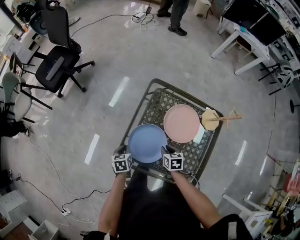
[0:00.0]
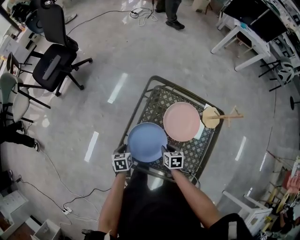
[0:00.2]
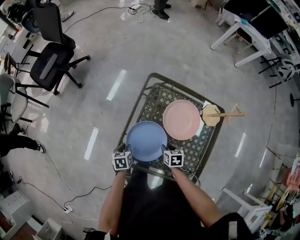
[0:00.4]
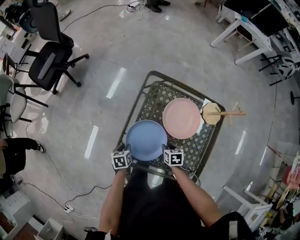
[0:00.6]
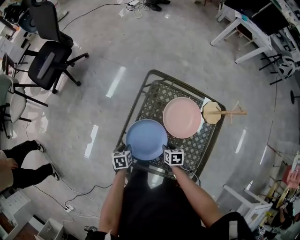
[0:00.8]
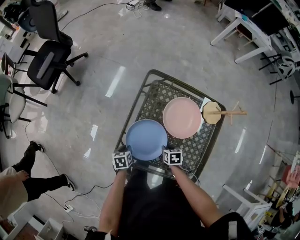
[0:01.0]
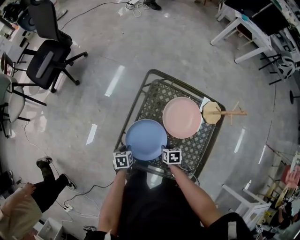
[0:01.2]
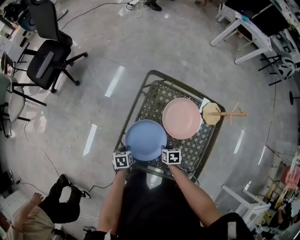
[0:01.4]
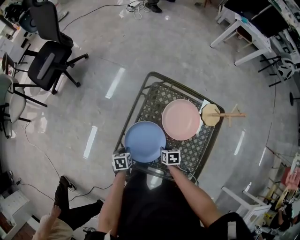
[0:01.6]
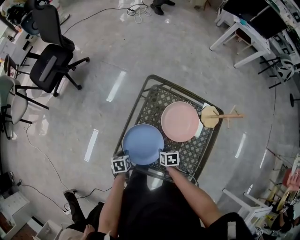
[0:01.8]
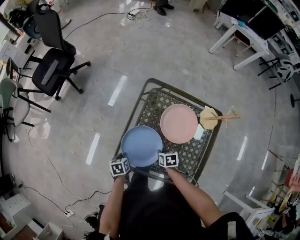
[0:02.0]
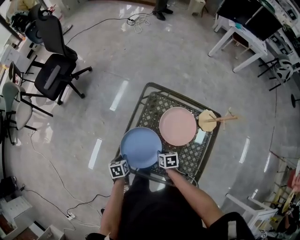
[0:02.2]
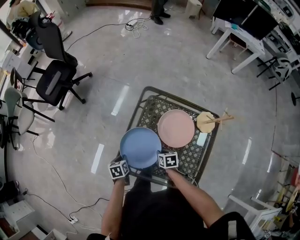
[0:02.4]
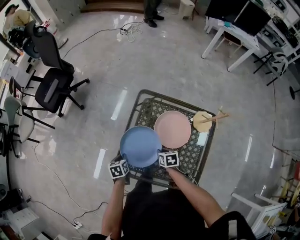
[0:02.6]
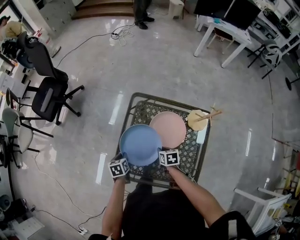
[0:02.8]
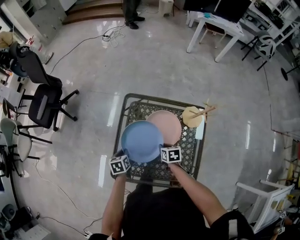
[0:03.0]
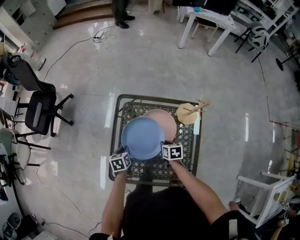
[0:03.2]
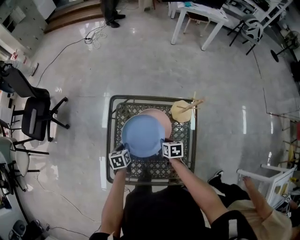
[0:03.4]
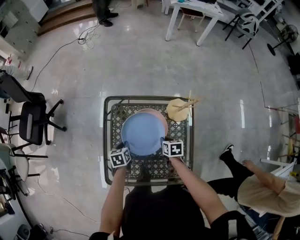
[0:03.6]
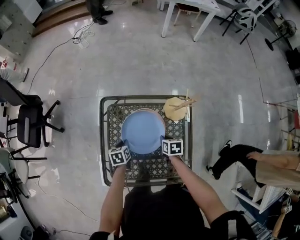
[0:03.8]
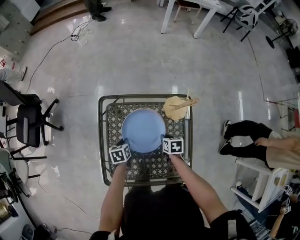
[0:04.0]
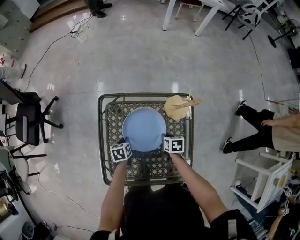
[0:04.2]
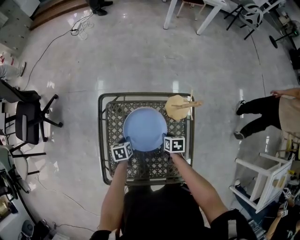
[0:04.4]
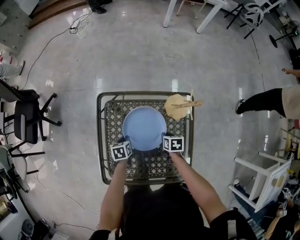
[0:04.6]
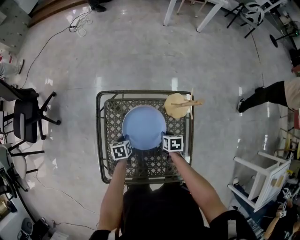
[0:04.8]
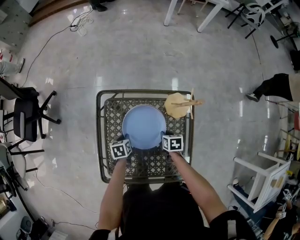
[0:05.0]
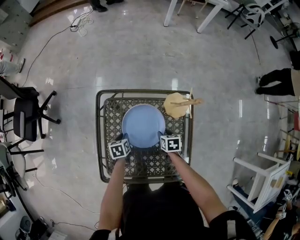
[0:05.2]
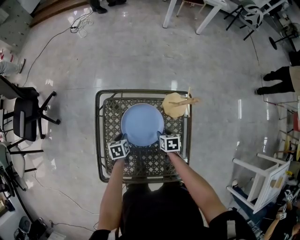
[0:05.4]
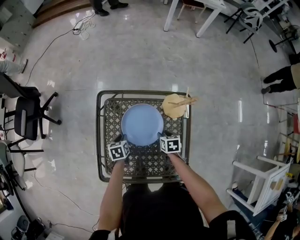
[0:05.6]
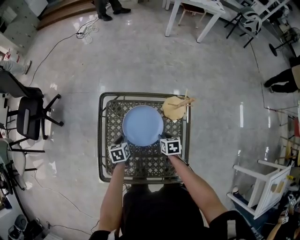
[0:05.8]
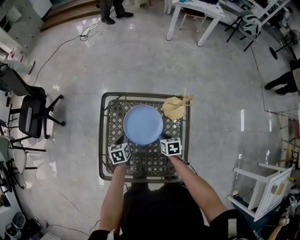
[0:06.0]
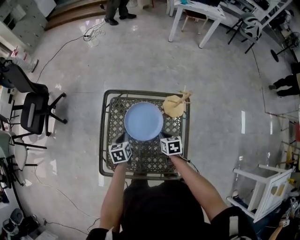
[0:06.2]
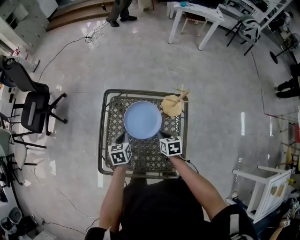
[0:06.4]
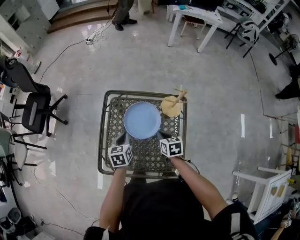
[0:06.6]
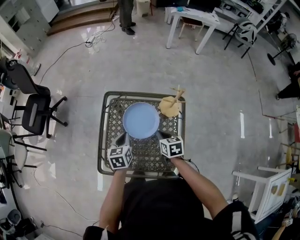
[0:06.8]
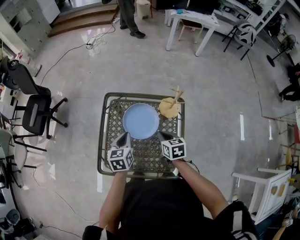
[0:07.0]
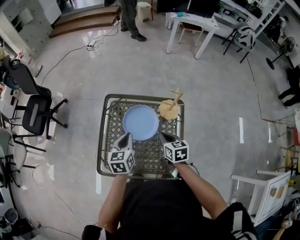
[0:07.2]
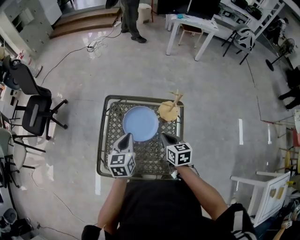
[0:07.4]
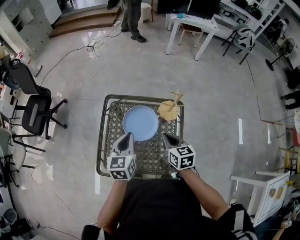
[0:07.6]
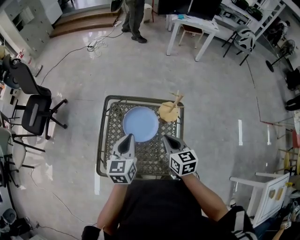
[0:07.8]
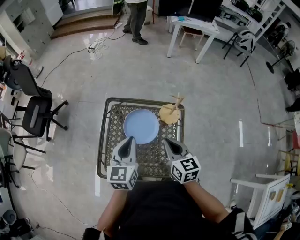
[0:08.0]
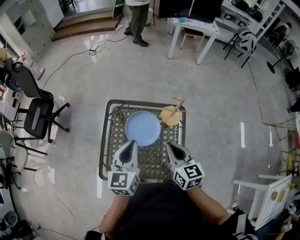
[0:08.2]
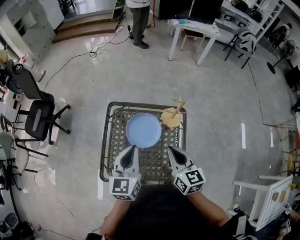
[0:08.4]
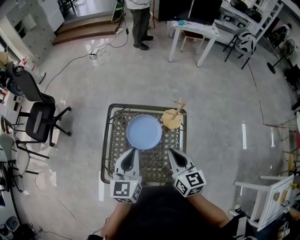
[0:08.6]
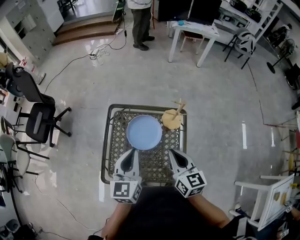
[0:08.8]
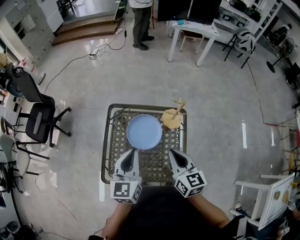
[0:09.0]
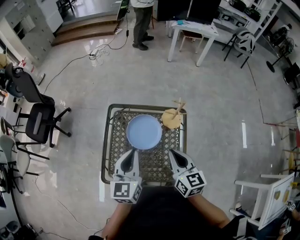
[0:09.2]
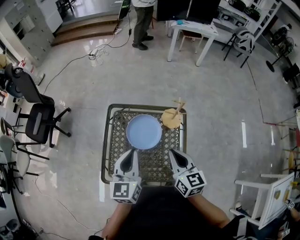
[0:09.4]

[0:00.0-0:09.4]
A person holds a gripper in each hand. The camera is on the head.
0:00.0 to 0:01.6: Both grippers travel together downward, about 5 cm.
0:01.6 to 0:03.2: The right gripper moves to the right, upward and forward, about 15 cm, while the left gripper shifts roughly 20 cm to the right, forward and upward.
0:03.2 to 0:04.8: The right gripper moves to the right and downward, some 10 cm; the left gripper heads to the right, forward and downward, covering about 15 cm.
0:04.8 to 0:06.2: The grippers both shift upward by some 10 cm. The right gripper opens, then closes again.
0:06.2 to 0:07.8: The grippers both shift upward by approximately 20 cm. The right gripper turns by approximately 30 degrees. The left gripper turns by roughly 30 degrees.
0:07.8 to 0:09.4: The grippers both shift upward by some 5 cm.

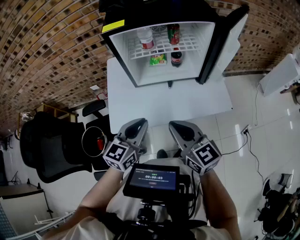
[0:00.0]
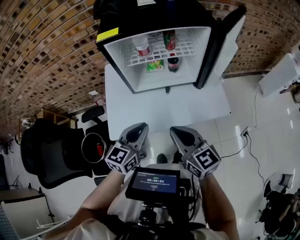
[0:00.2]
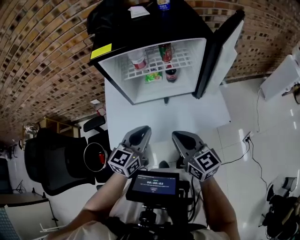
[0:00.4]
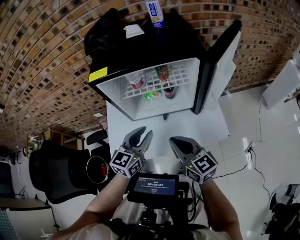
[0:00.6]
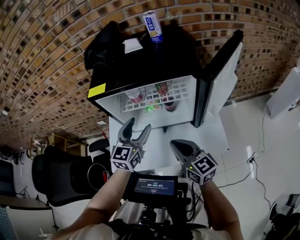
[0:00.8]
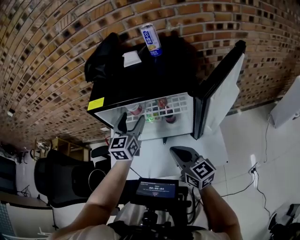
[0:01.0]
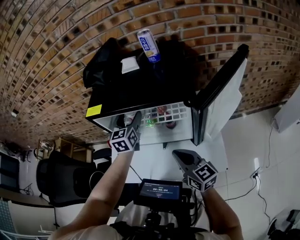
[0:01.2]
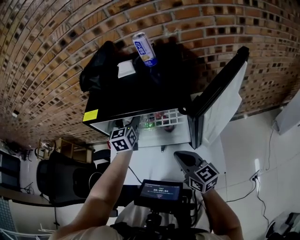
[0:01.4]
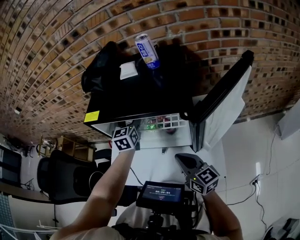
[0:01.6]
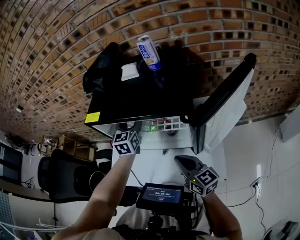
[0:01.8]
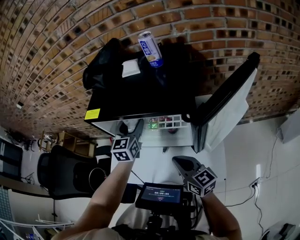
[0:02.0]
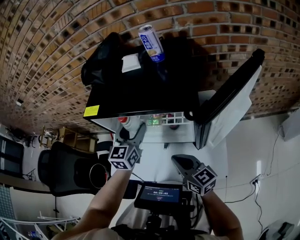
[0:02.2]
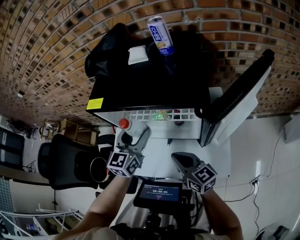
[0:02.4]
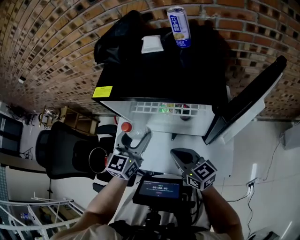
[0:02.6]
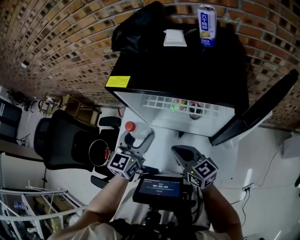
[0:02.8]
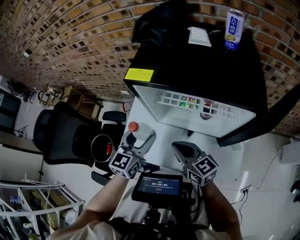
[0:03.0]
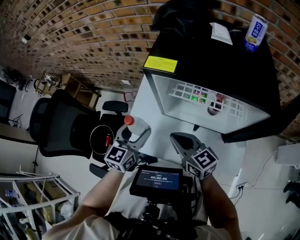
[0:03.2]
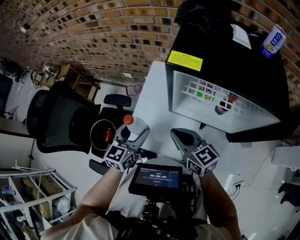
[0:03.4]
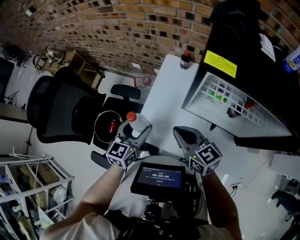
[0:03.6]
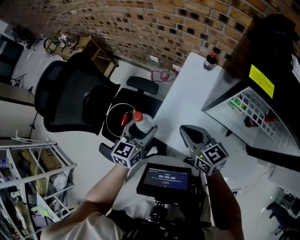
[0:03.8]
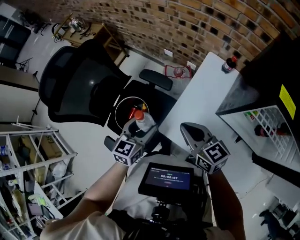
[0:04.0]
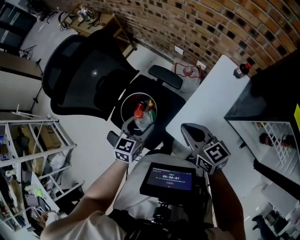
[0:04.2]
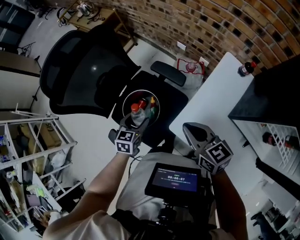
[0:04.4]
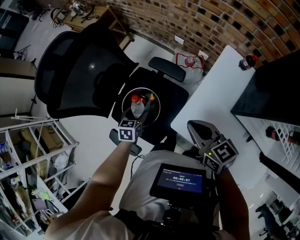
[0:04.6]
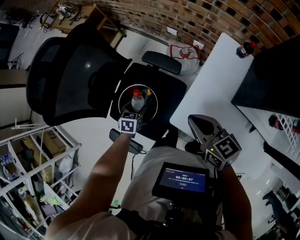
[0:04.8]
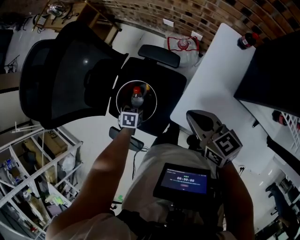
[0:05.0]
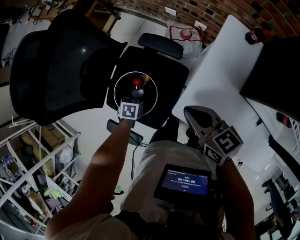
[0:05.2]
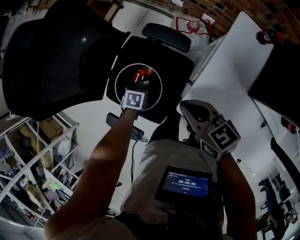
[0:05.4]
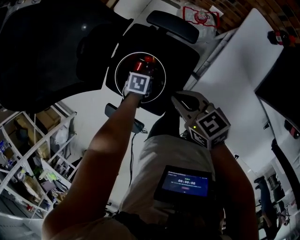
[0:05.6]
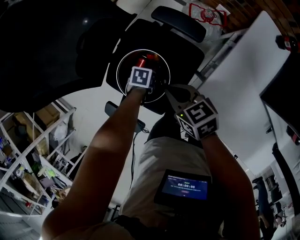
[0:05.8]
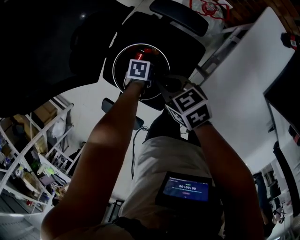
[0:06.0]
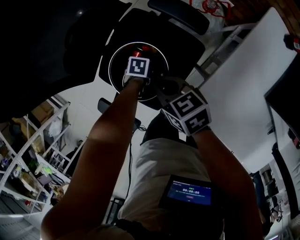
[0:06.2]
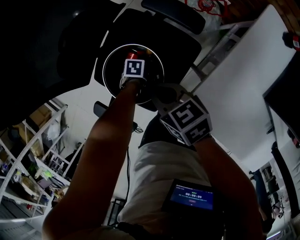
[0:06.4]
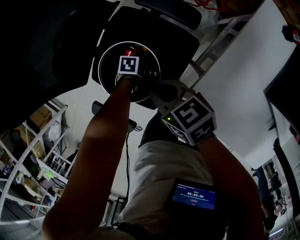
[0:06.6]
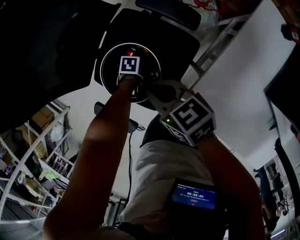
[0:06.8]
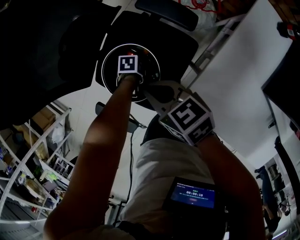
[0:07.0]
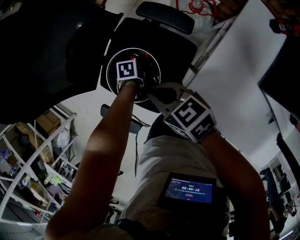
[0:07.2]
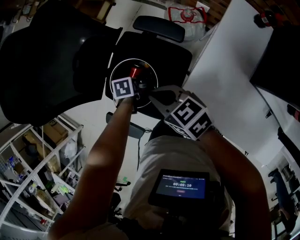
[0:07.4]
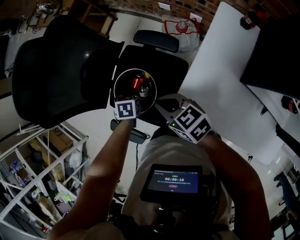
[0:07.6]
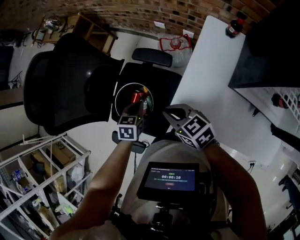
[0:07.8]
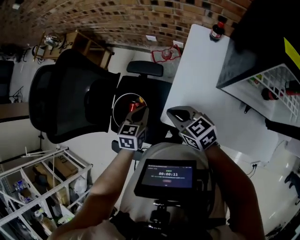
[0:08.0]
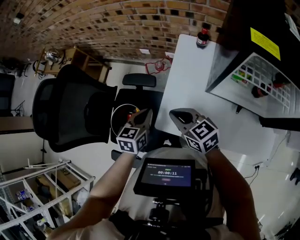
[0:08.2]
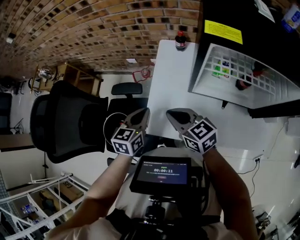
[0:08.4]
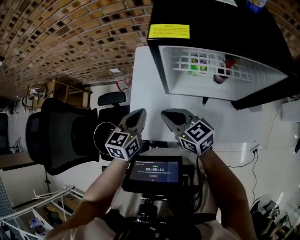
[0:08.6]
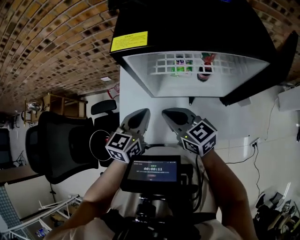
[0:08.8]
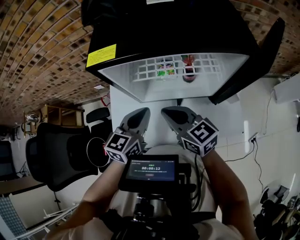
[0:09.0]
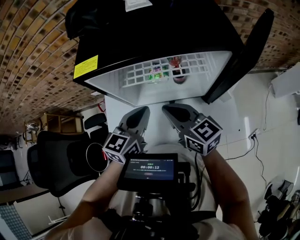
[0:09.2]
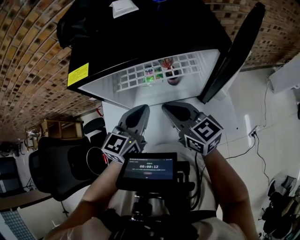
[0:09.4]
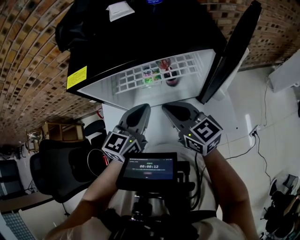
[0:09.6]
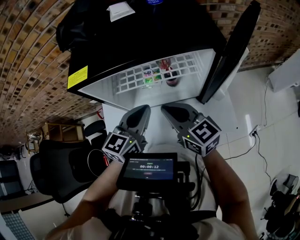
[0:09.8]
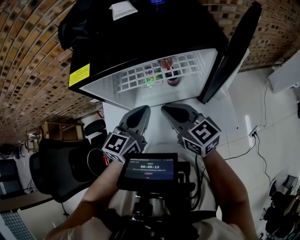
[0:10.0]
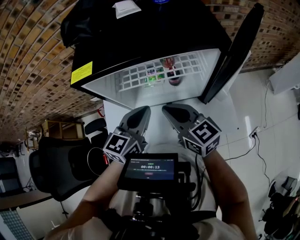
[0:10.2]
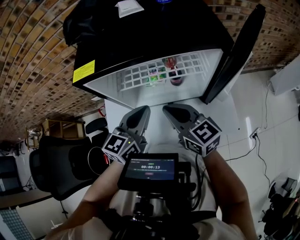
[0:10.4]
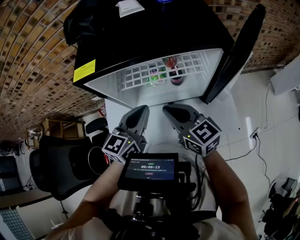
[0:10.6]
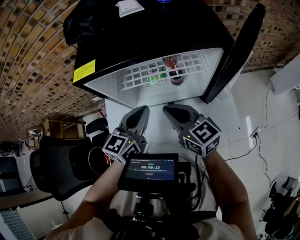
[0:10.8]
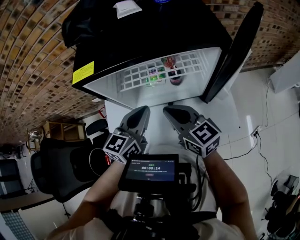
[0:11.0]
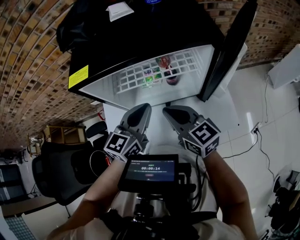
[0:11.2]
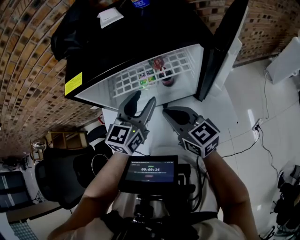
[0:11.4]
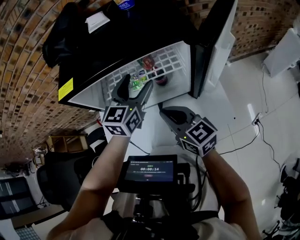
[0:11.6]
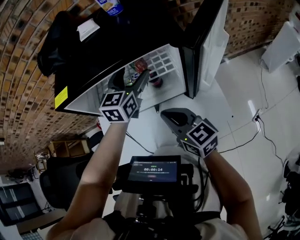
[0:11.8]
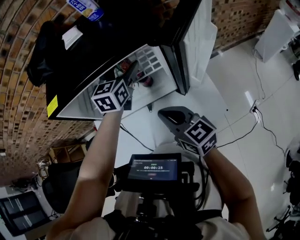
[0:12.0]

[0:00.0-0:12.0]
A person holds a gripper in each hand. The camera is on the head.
0:00.0 to 0:01.6: The right gripper ends up some 25 cm from where it was. The left gripper moves some 40 cm, turns by roughly 40 degrees, and opens.
0:01.6 to 0:03.0: The right gripper moves to the left, some 15 cm. Meanwhile the left gripper moves backward and to the left, approximately 20 cm.
0:03.0 to 0:04.4: The right gripper changes place by approximately 35 cm, and swivels about 30 degrees; the left gripper shifts by about 50 cm, and swivels approximately 40 degrees.
0:04.4 to 0:06.0: Both grippers travel together downward, about 25 cm. The left gripper tilts its fingers some 40 degrees downward; the right gripper turns by roughly 30 degrees.
0:06.0 to 0:07.6: Both grippers travel together upward, some 15 cm. The left gripper changes its angle by approximately 30 degrees, and closes its fingers.
0:07.6 to 0:09.0: The pair of grippers is taken some 50 cm. The right gripper changes its angle by approximately 50 degrees. Meanwhile the left gripper tilts its fingers approximately 50 degrees upward.
0:09.0 to 0:10.4: Both grippers travel together to the right, some 5 cm.
0:10.4 to 0:12.0: The left gripper moves forward and to the right, some 20 cm, and opens up. Meanwhile the right gripper moves to the right, about 10 cm.

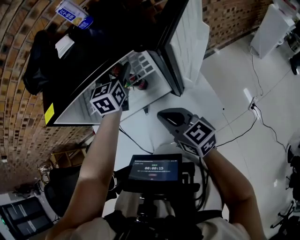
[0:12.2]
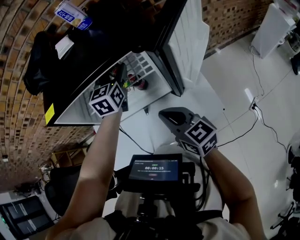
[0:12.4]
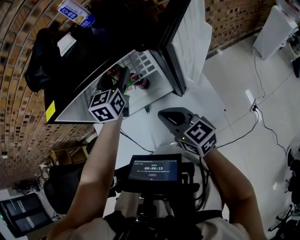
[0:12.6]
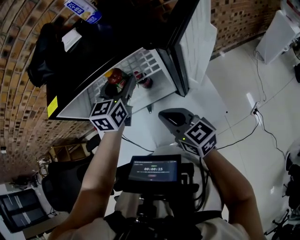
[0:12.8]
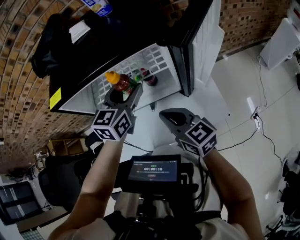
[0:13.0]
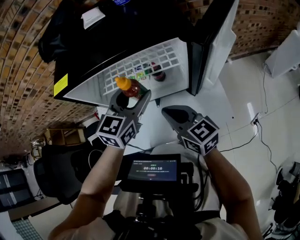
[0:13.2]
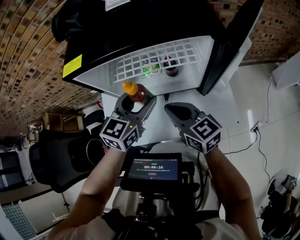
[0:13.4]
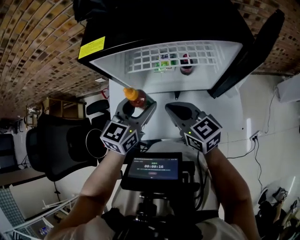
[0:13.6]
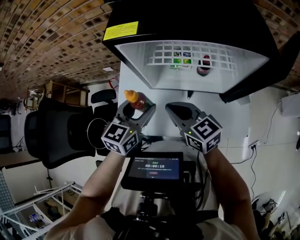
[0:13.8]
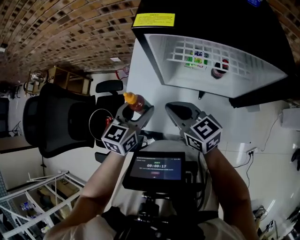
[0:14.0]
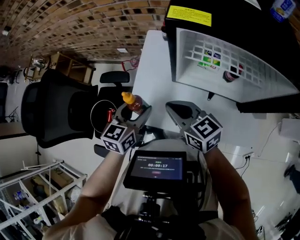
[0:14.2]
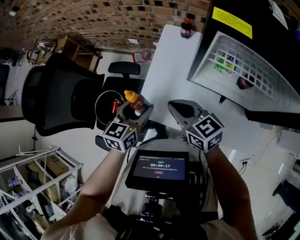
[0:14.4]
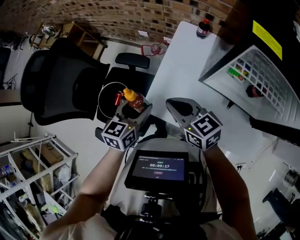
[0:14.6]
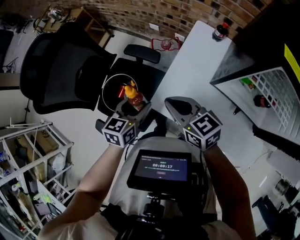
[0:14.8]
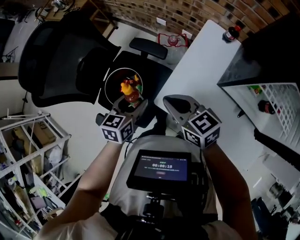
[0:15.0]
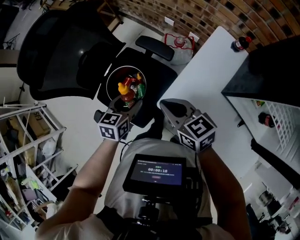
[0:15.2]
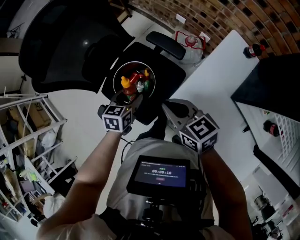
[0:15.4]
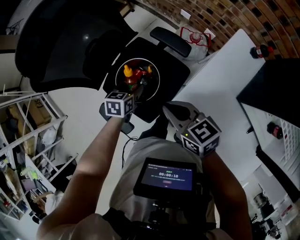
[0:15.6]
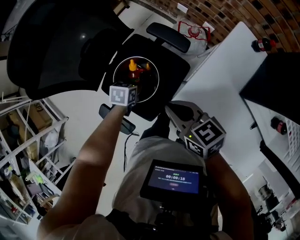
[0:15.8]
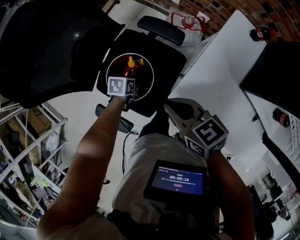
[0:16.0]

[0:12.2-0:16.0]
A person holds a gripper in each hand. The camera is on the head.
0:12.2 to 0:13.4: The left gripper heads backward and to the left, covering some 20 cm. Meanwhile the right gripper moves to the left, approximately 10 cm.
0:13.4 to 0:14.8: The right gripper shifts by approximately 40 cm, and changes its angle by about 40 degrees; the left gripper moves some 50 cm, and turns by about 50 degrees.
0:14.8 to 0:16.0: The left gripper travels downward and to the left by about 30 cm, and tips its fingers downward by approximately 30 degrees, while the right gripper goes approximately 10 cm to the left and downward.
